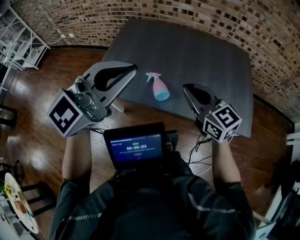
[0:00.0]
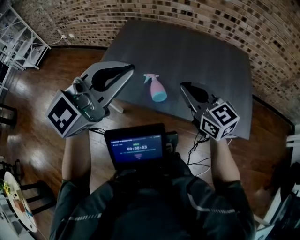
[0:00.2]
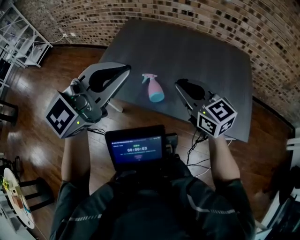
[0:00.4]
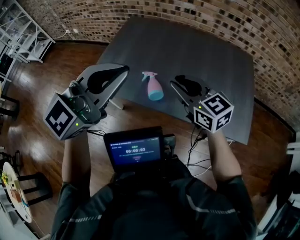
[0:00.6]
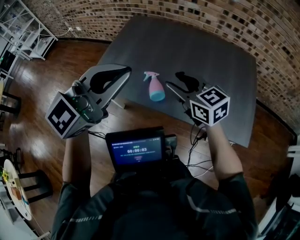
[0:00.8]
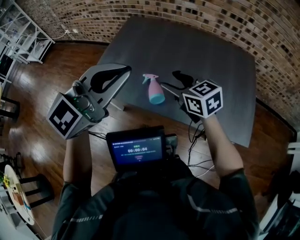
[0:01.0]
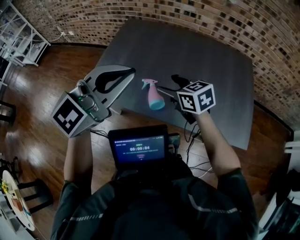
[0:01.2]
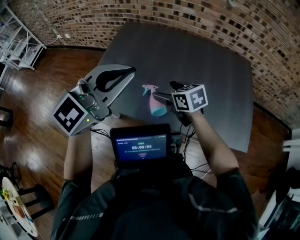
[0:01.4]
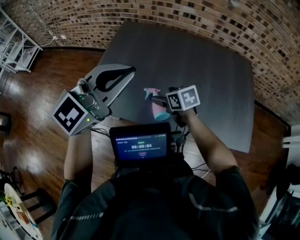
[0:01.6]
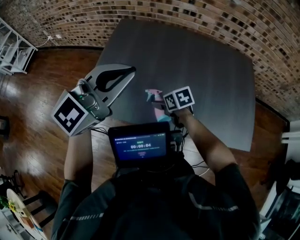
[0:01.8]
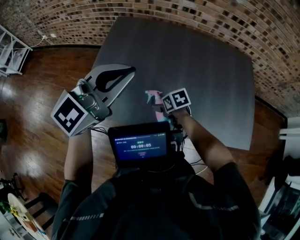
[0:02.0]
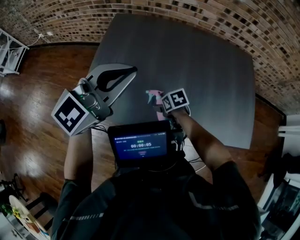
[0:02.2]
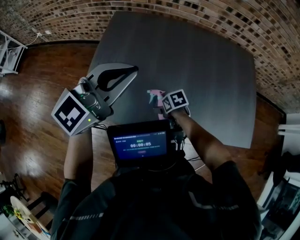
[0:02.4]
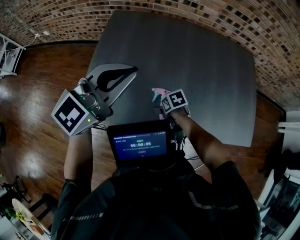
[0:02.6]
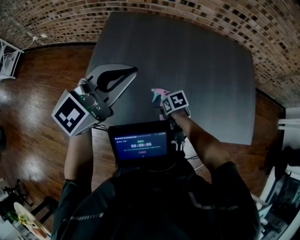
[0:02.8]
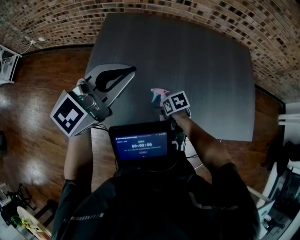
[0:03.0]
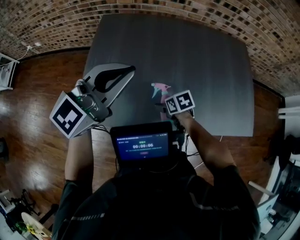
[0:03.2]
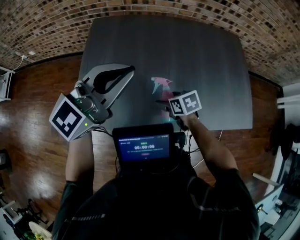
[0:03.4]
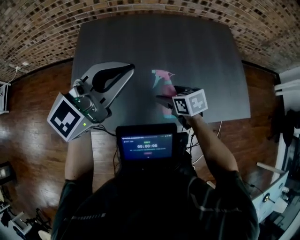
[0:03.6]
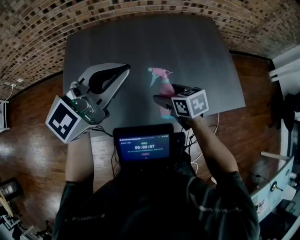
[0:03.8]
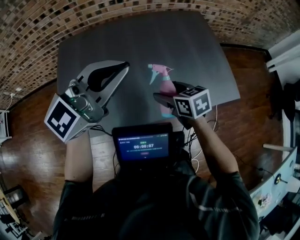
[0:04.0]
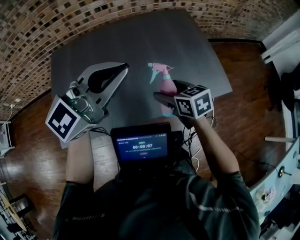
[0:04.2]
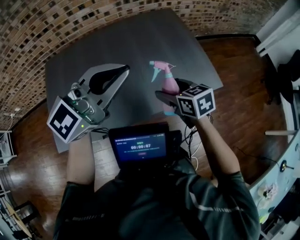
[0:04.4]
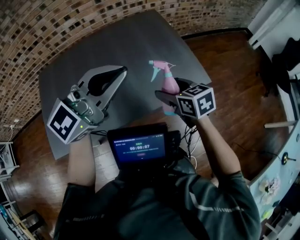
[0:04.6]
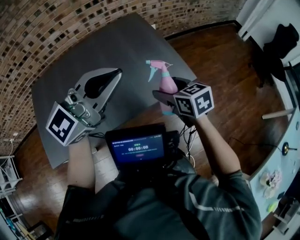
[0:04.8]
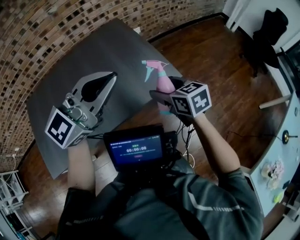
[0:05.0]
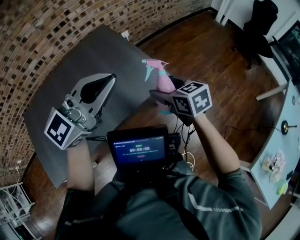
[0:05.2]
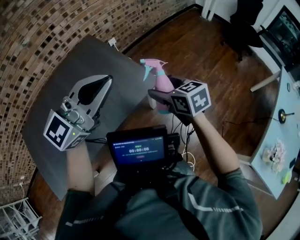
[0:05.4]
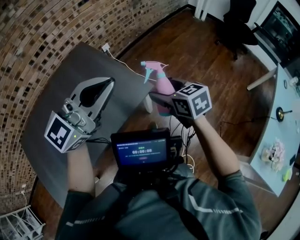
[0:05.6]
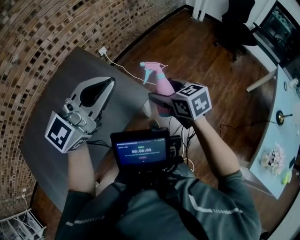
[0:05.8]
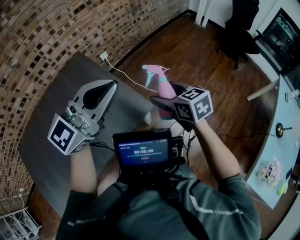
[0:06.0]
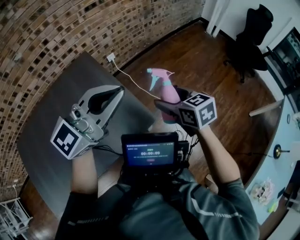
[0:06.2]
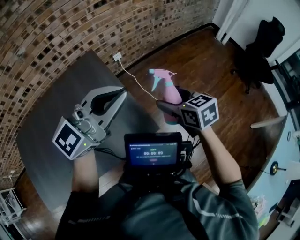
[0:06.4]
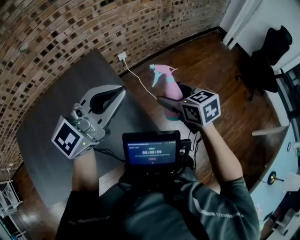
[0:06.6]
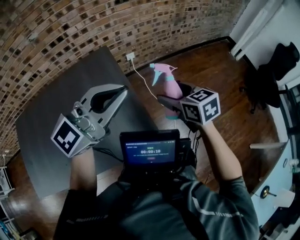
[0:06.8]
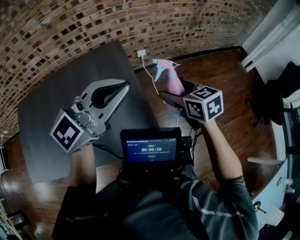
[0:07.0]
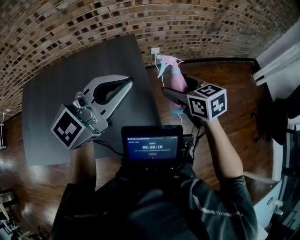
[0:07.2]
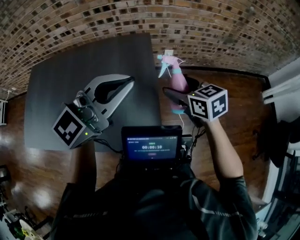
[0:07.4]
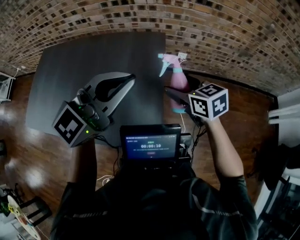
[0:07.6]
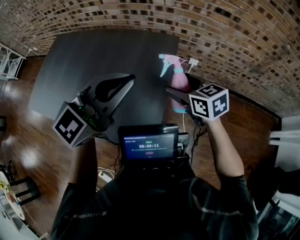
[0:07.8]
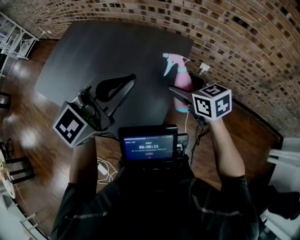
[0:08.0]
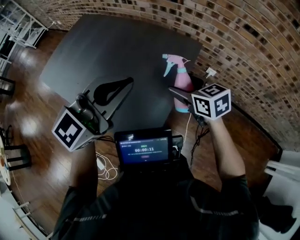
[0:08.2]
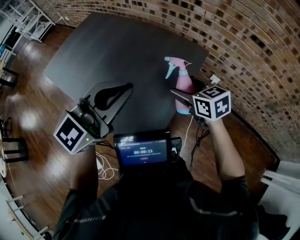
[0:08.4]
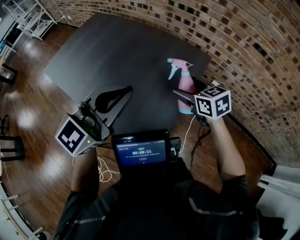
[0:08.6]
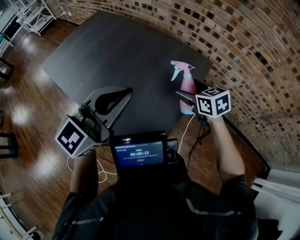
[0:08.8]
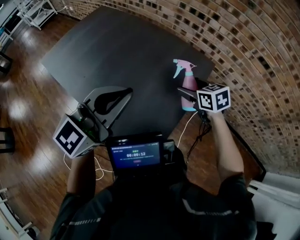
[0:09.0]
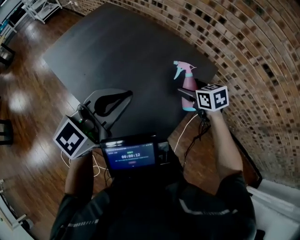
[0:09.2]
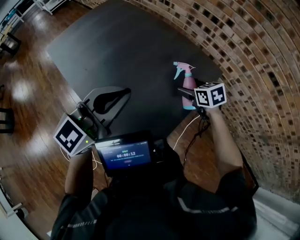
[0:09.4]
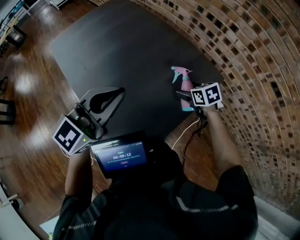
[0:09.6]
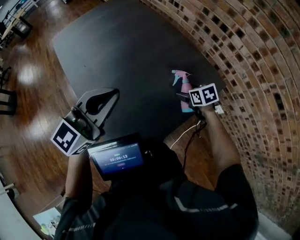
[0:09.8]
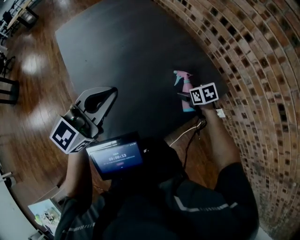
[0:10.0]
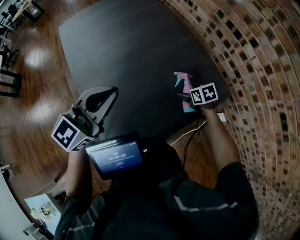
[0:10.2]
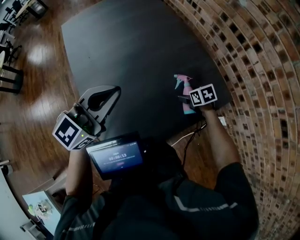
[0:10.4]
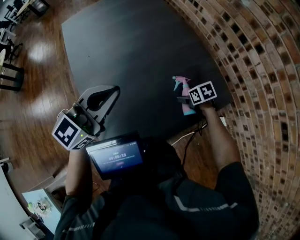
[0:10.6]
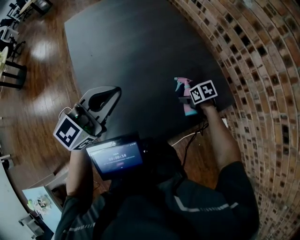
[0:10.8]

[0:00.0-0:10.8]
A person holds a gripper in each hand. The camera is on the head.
0.0 to 1.6 s: The left gripper moves forward, roughly 15 cm; the right gripper goes approximately 25 cm downward, forward and to the left, tips its fingers downward by approximately 30 degrees, and opens its fingers.
1.6 to 3.0 s: The left gripper ends up some 15 cm from where it was; the right gripper travels downward by some 15 cm, and turns by approximately 30 degrees.
3.0 to 4.6 s: The left gripper ends up approximately 40 cm from where it was, and rotates approximately 30 degrees, while the right gripper changes place by about 40 cm, and tips its fingers upward by some 30 degrees.
4.6 to 6.2 s: Both grippers travel together to the right and forward, approximately 40 cm.
6.2 to 7.8 s: The right gripper shifts by about 30 cm, and swivels about 60 degrees; the left gripper changes place by some 20 cm, and turns by roughly 60 degrees.
7.8 to 9.2 s: The left gripper is displaced to the left by some 15 cm, and rotates approximately 30 degrees. The right gripper travels forward, to the left and downward by approximately 15 cm, and changes its angle by roughly 20 degrees.
9.2 to 10.8 s: The right gripper is displaced downward by some 20 cm, and rotates approximately 40 degrees; the left gripper changes place by roughly 15 cm, and turns by about 30 degrees.

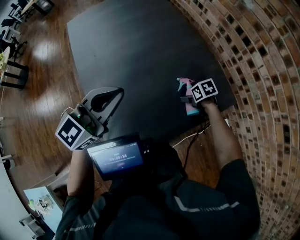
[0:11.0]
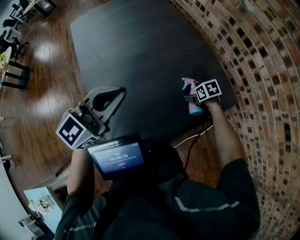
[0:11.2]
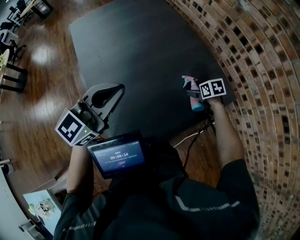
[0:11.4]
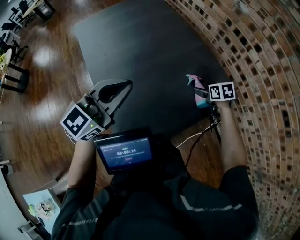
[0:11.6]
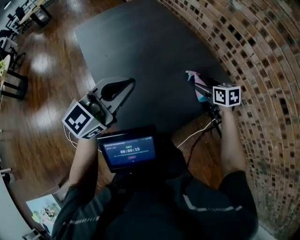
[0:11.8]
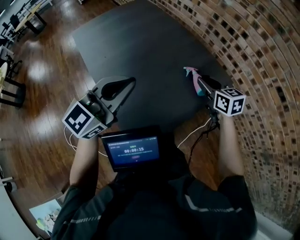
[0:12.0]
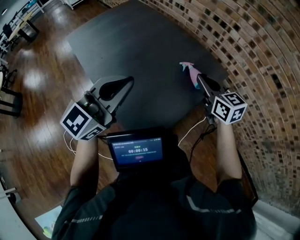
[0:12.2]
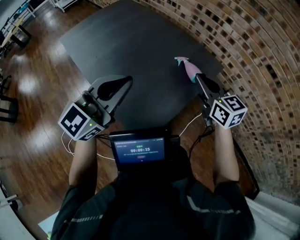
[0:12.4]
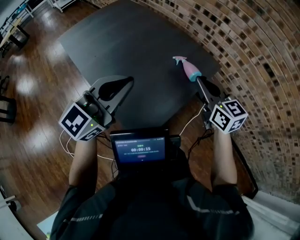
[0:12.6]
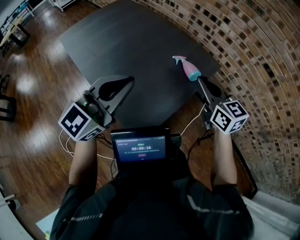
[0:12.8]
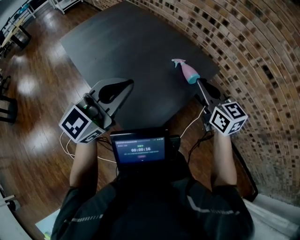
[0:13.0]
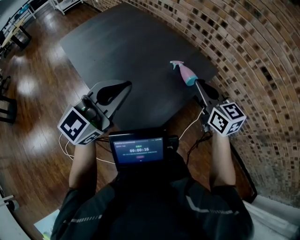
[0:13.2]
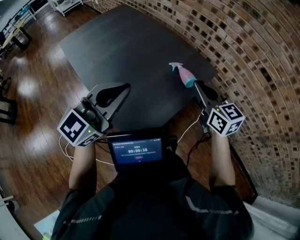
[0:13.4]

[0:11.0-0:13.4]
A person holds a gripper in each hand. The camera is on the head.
11.0 to 12.2 s: The right gripper travels upward by roughly 30 cm, tilts its fingers some 50 degrees upward, and closes. Meanwhile the left gripper shifts by roughly 15 cm.
12.2 to 13.4 s: The two grippers go some 5 cm backward.

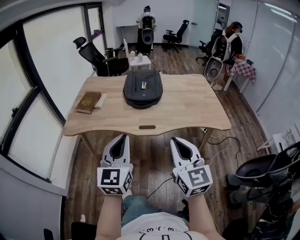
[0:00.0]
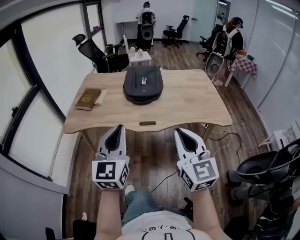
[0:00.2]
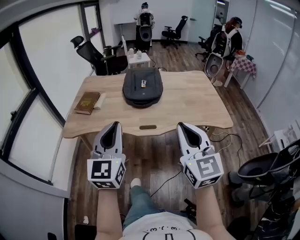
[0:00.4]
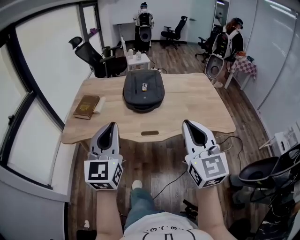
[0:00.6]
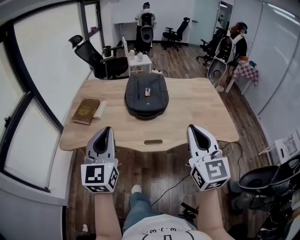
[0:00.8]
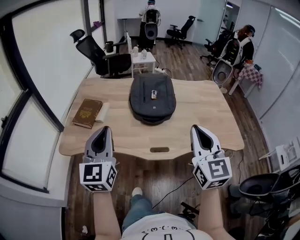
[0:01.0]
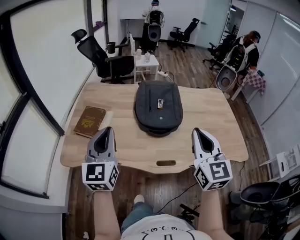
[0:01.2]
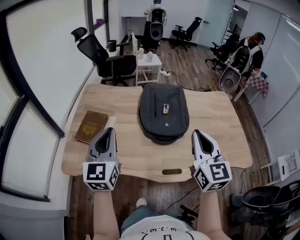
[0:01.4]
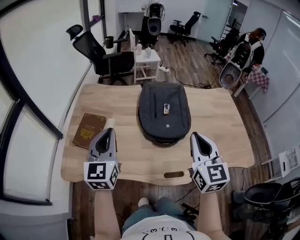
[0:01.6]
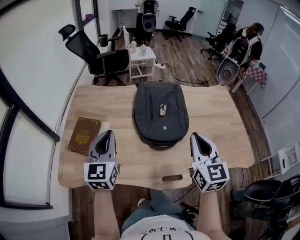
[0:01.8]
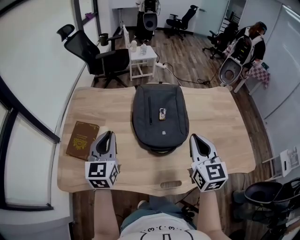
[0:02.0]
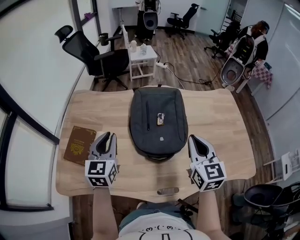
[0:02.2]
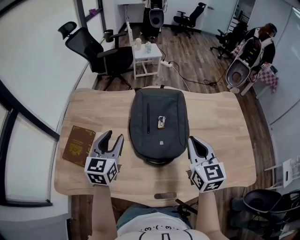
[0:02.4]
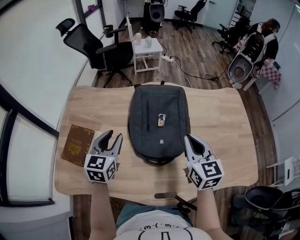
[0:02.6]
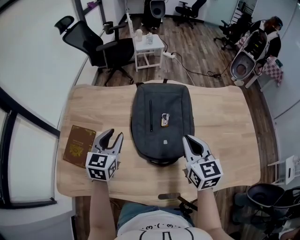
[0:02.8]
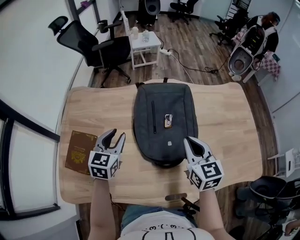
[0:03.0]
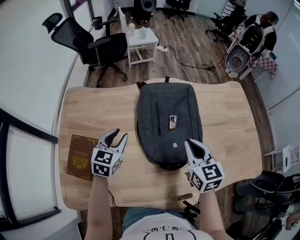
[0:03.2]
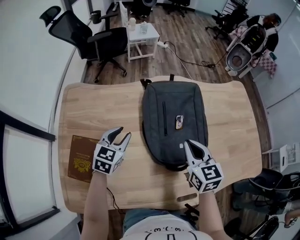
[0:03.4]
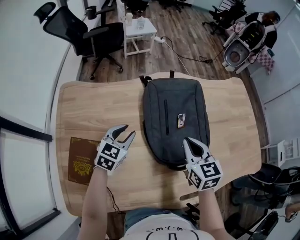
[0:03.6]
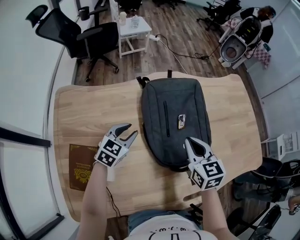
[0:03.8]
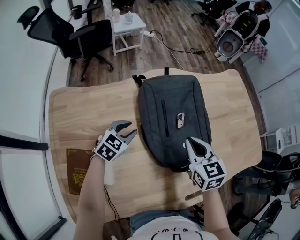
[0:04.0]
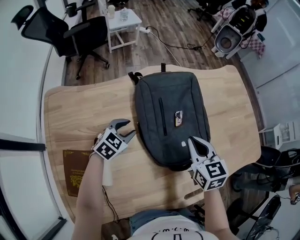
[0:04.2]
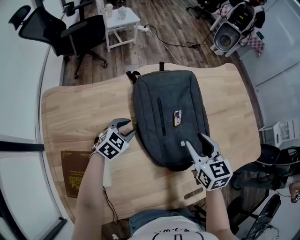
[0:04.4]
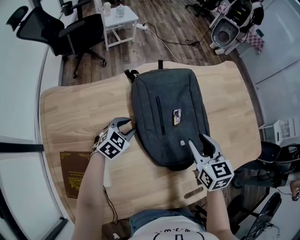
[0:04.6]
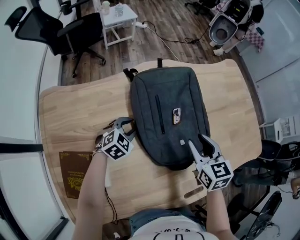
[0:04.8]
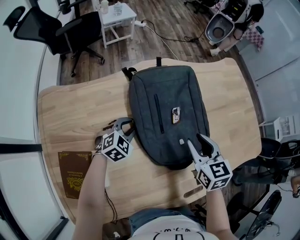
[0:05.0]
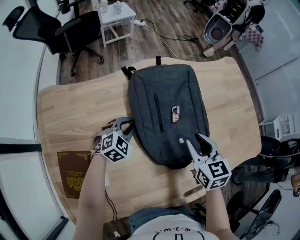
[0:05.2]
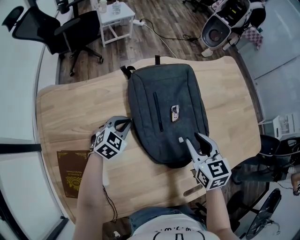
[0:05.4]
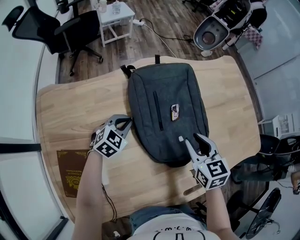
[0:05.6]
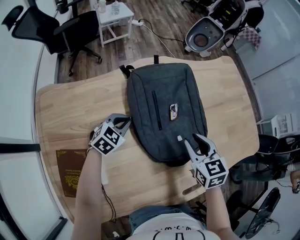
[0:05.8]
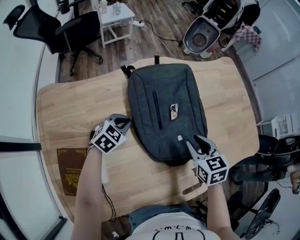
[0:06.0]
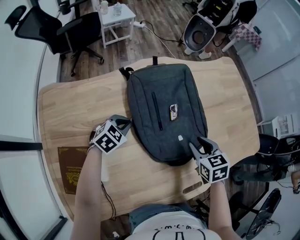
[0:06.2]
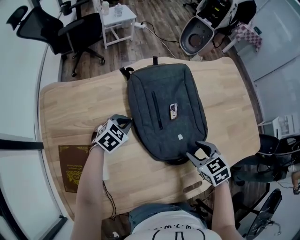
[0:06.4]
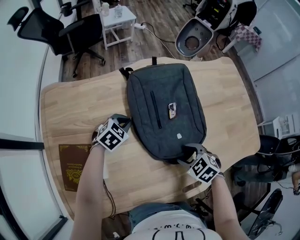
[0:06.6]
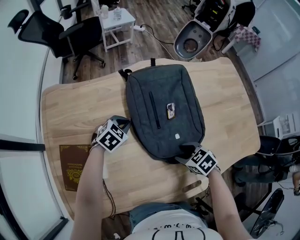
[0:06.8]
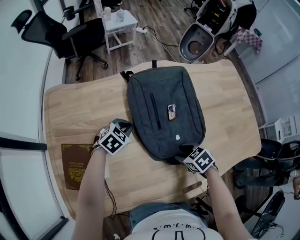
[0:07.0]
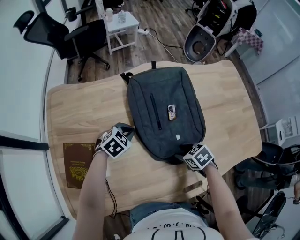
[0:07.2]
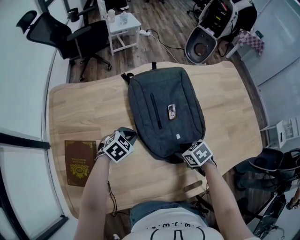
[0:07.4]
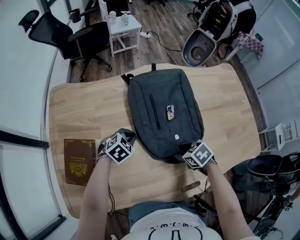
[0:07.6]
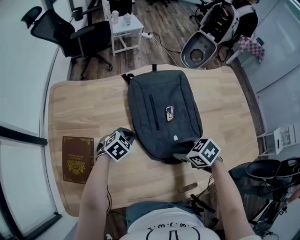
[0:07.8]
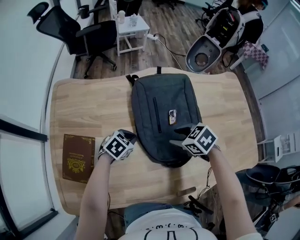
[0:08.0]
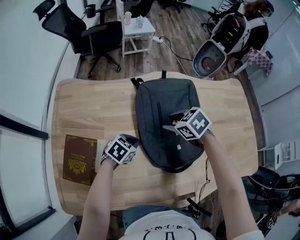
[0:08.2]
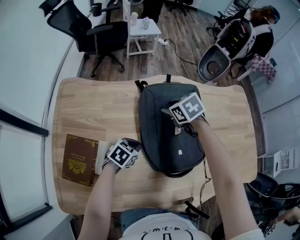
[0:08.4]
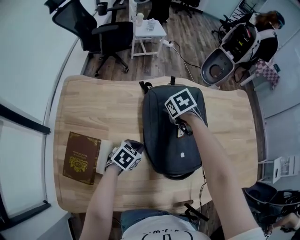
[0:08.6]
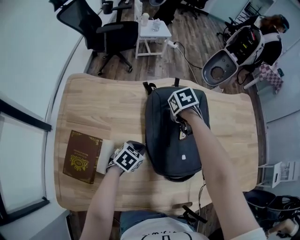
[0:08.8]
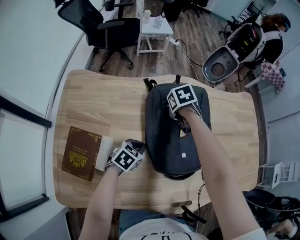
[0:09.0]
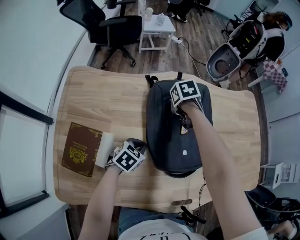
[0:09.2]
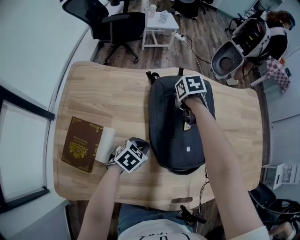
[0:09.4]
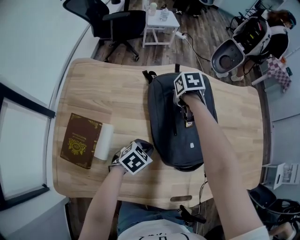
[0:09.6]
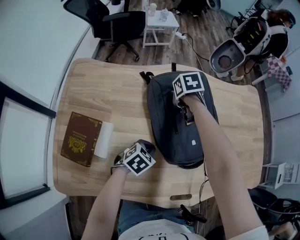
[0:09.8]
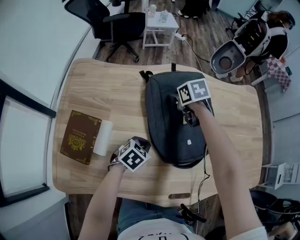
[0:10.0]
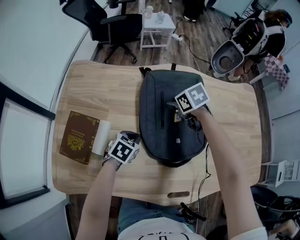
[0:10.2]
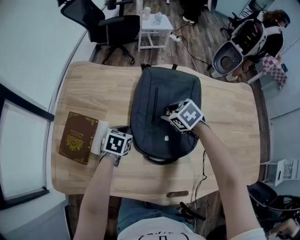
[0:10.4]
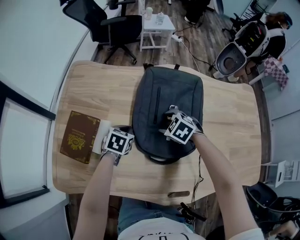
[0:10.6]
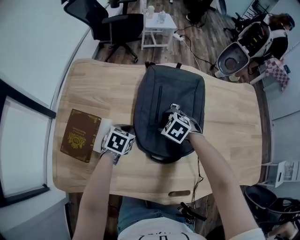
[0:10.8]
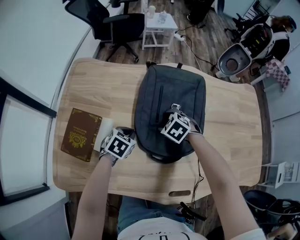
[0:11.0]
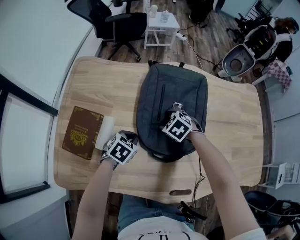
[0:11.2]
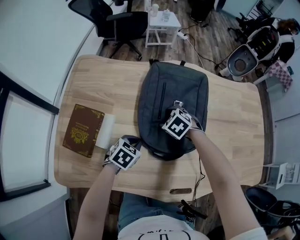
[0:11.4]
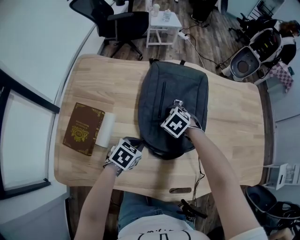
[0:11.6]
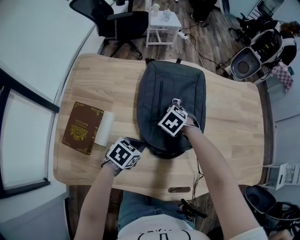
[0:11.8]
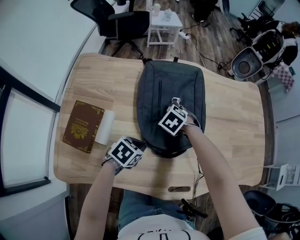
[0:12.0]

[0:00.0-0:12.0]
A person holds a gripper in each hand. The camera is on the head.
0.0 to 1.6 s: Both grippers are carried forward, roughly 40 cm.
1.6 to 3.0 s: The two grippers go roughly 25 cm forward and downward. The left gripper rotates roughly 30 degrees, and opens.
3.0 to 4.4 s: The right gripper moves downward, some 5 cm, and opens. The left gripper travels downward by approximately 15 cm, and changes its angle by about 50 degrees.
4.4 to 6.0 s: The left gripper closes. Meanwhile the right gripper shifts by some 5 cm.
6.0 to 7.6 s: The right gripper travels downward by some 10 cm, and turns by about 40 degrees. The left gripper changes place by about 10 cm.
7.6 to 9.0 s: The left gripper turns by about 30 degrees. The right gripper changes place by some 30 cm.
9.0 to 10.4 s: The left gripper swivels approximately 20 degrees, while the right gripper shifts by about 10 cm, and turns by about 30 degrees.
10.4 to 12.0 s: The right gripper shifts some 5 cm downward. Meanwhile the left gripper moves about 15 cm, and turns by about 20 degrees.
